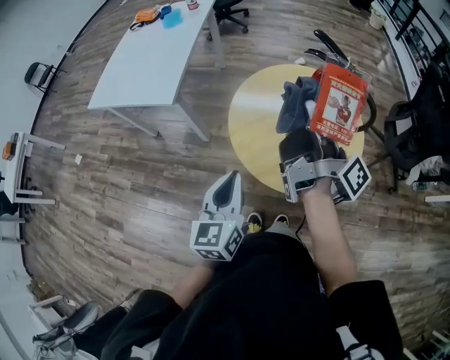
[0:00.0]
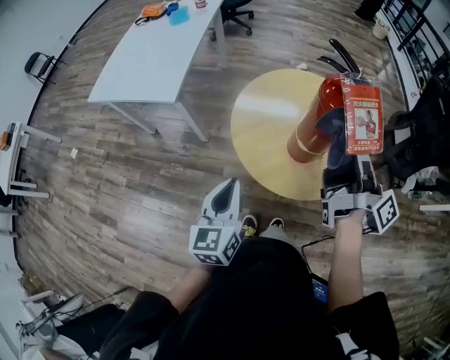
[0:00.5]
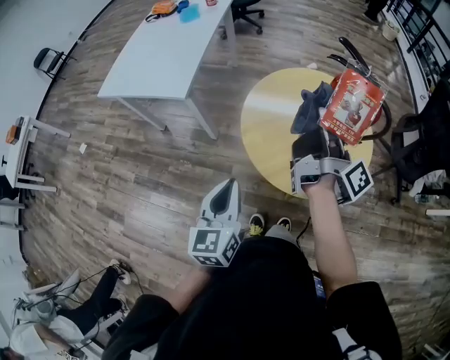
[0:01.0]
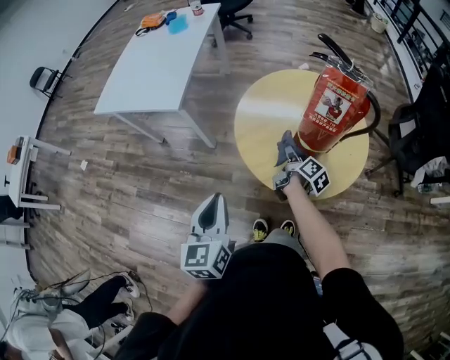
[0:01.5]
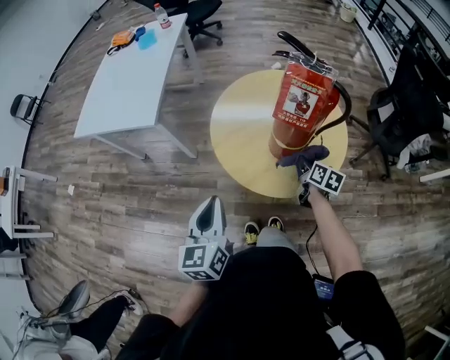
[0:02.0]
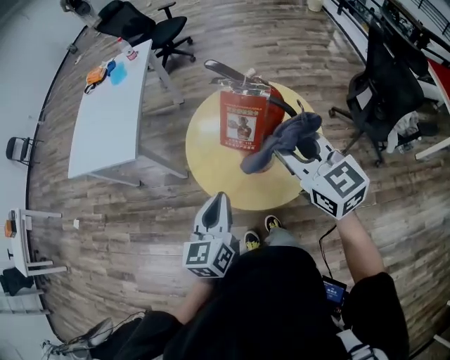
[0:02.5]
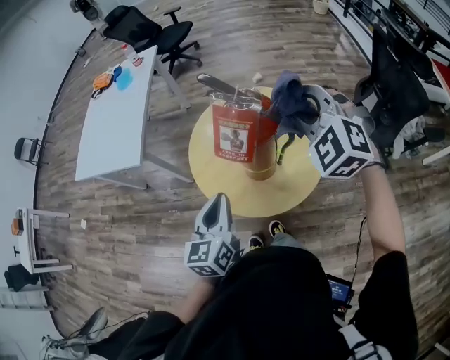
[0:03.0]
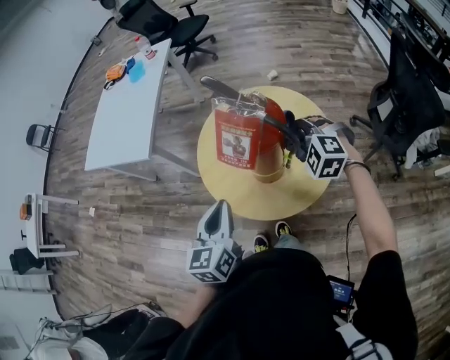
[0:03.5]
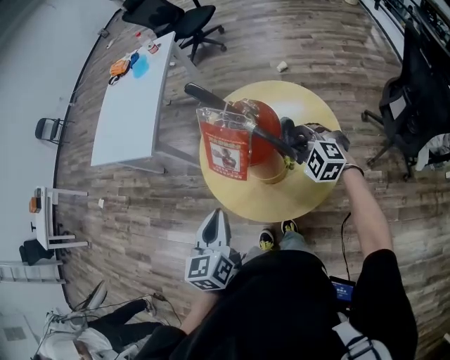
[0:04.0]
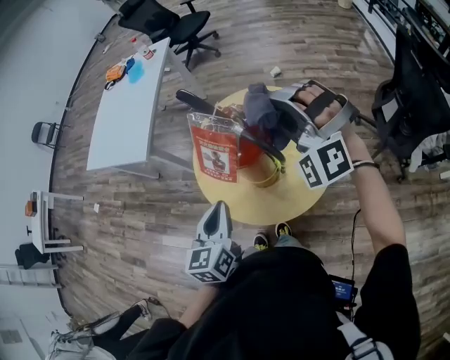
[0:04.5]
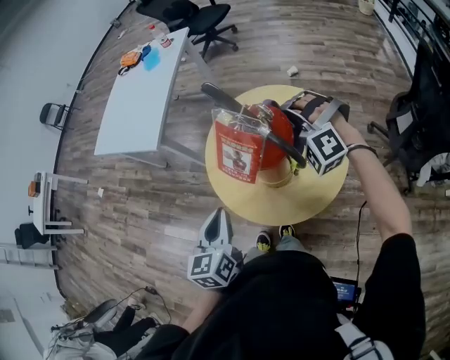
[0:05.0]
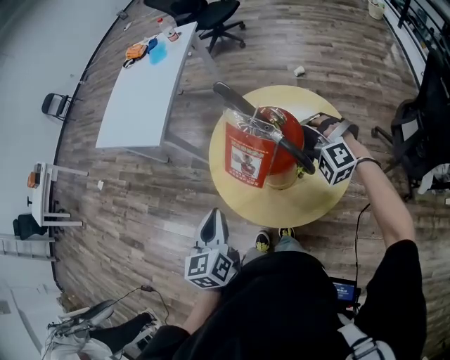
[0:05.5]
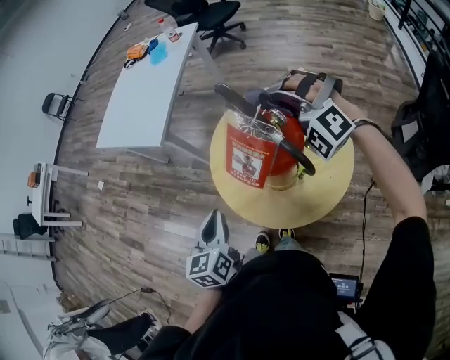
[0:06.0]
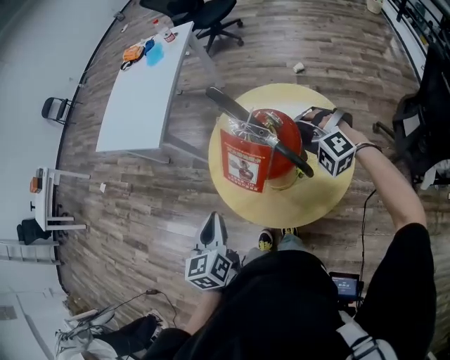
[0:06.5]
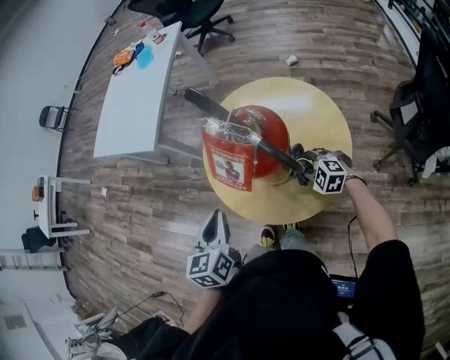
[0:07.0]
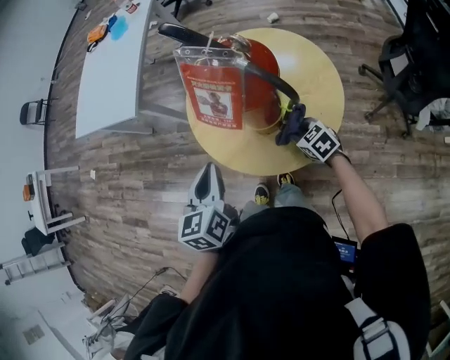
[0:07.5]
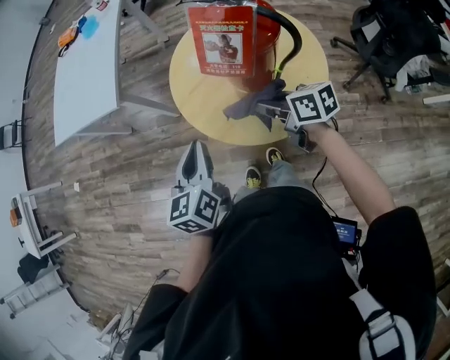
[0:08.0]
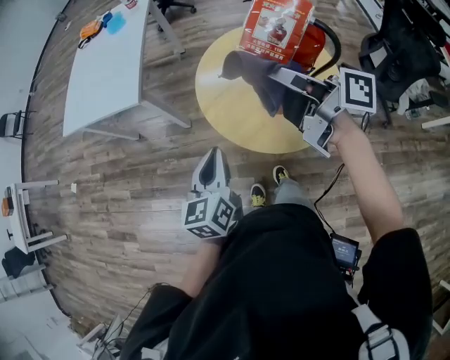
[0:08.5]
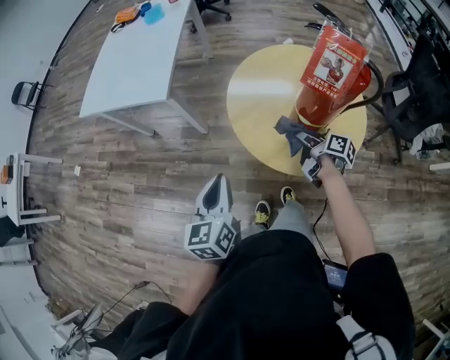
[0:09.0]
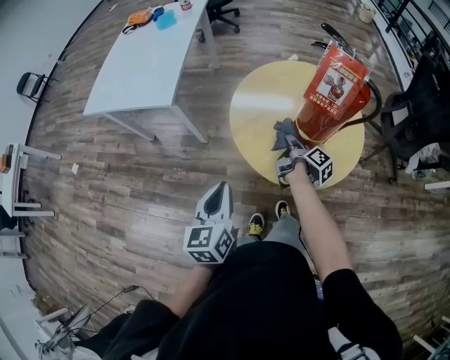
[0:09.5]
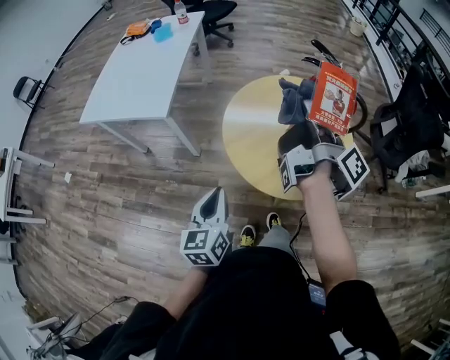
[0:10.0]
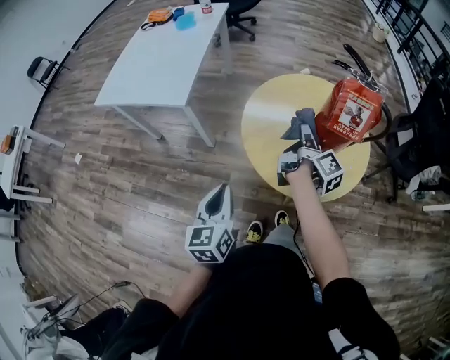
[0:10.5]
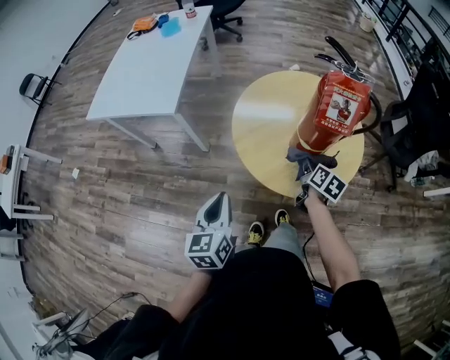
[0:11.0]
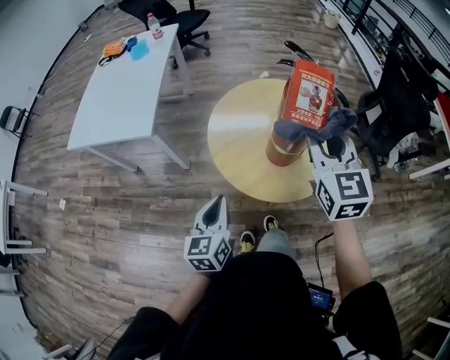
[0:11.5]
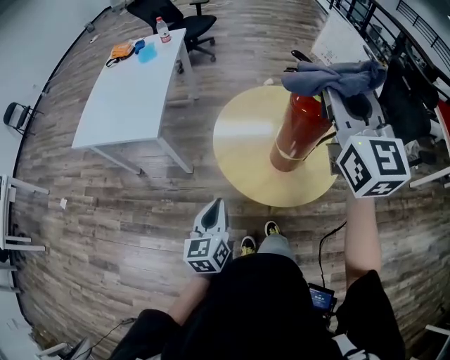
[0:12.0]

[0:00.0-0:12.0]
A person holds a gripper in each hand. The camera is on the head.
0:00.0 to 0:02.0: The right gripper is displaced downward by some 30 cm, and points its fingers roughly 50 degrees further downward.
0:02.0 to 0:04.0: The right gripper is displaced forward by about 10 cm, moves roughly 35 cm upward and comes back, and twists about 100 degrees counterclockwise, seen from behind, while the left gripper heads to the right, covering some 15 cm.
0:04.0 to 0:06.0: The right gripper swings up and down, roughly 20 cm each way, with 2 reversals, and rotates around the line of its fingers by approximately 40 degrees, counterclockwise from behind.
0:06.0 to 0:08.0: The right gripper shifts about 25 cm downward, backward and to the left, and rotates around the line of its fingers by some 130 degrees, clockwise from behind.
0:08.0 to 0:10.0: The left gripper shifts by some 10 cm; the right gripper goes up and down, roughly 30 cm each way, reversing 2 times, and points its fingers roughly 30 degrees further upward.
0:10.0 to 0:12.0: The right gripper heads upward, covering about 15 cm, and twists some 100 degrees counterclockwise, seen from behind.

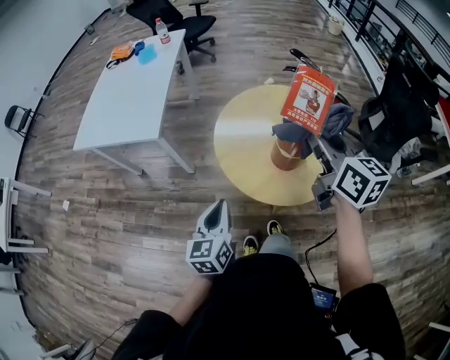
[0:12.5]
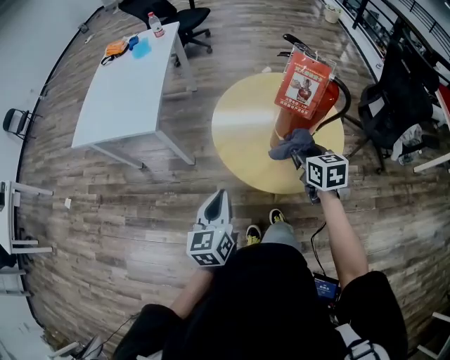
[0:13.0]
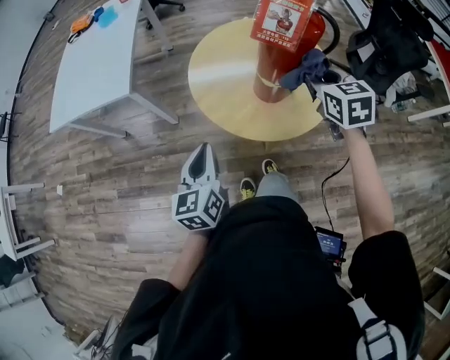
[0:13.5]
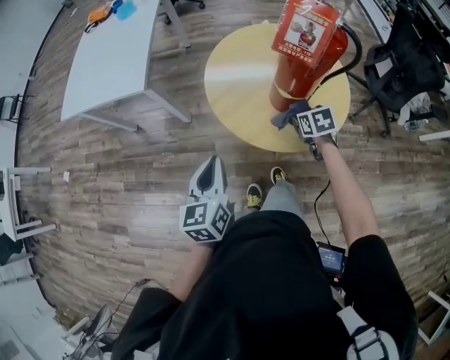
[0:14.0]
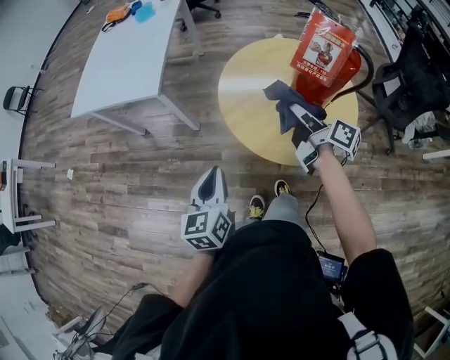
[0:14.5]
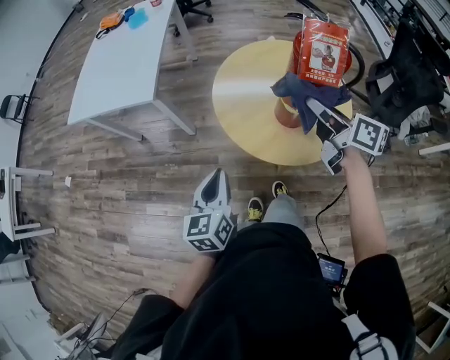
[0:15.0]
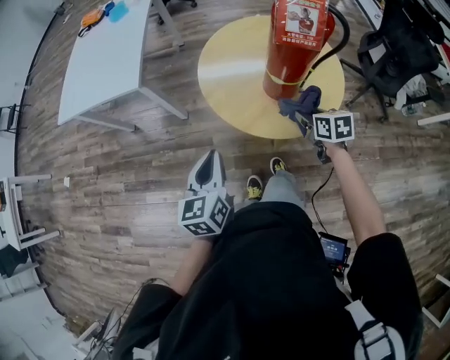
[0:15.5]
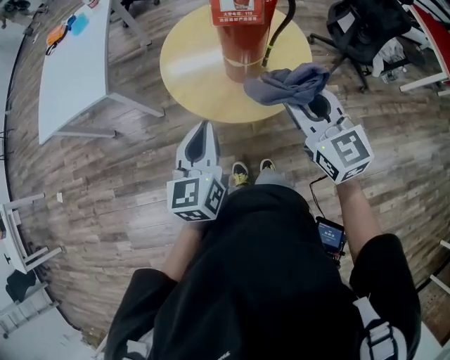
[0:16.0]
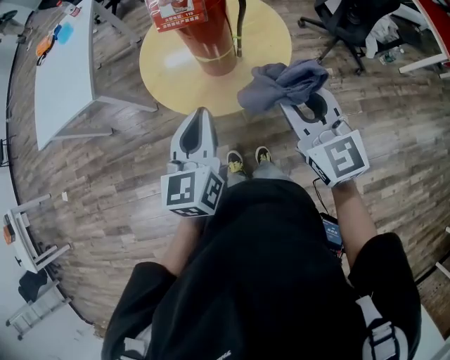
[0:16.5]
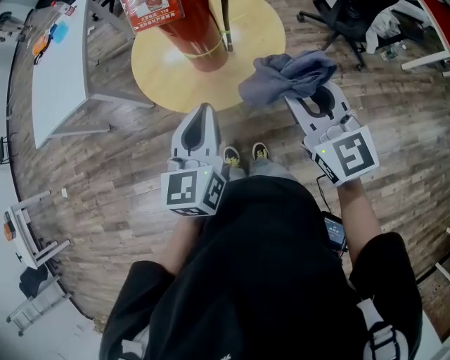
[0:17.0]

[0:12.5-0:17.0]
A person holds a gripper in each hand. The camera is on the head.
0:12.5 to 0:14.5: The right gripper moves up and down over some 35 cm, changing direction 3 times, and rolls clockwise, seen from behind, by some 50 degrees.
0:14.5 to 0:17.0: The left gripper travels to the right by approximately 25 cm, and rotates some 20 degrees. Meanwhile the right gripper swings up and down, roughly 25 cm each way, with 2 reversals, and twists approximately 70 degrees counterclockwise, seen from behind.

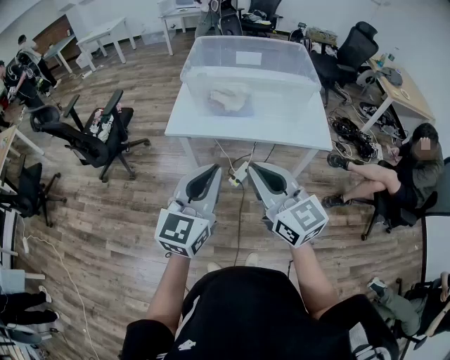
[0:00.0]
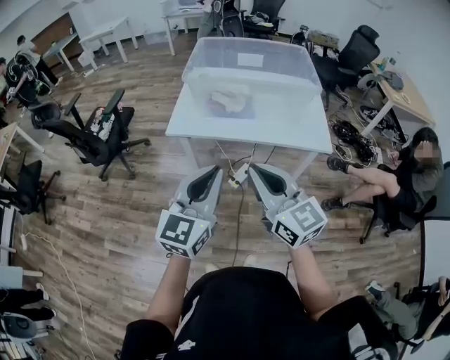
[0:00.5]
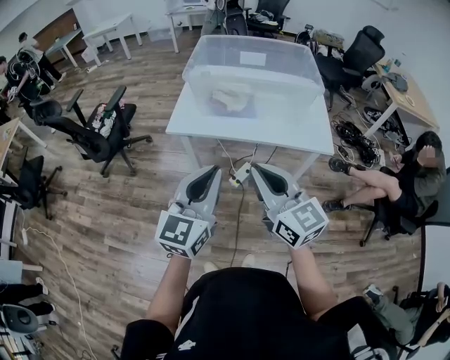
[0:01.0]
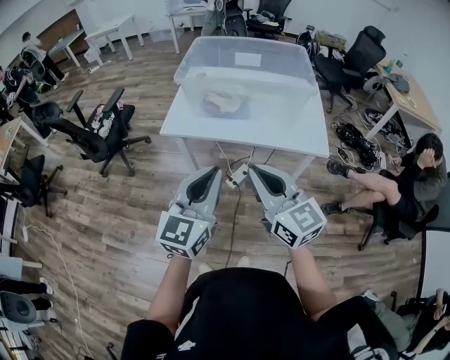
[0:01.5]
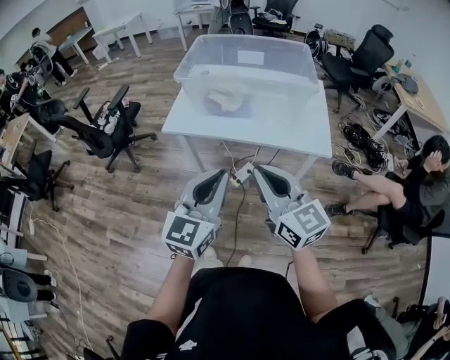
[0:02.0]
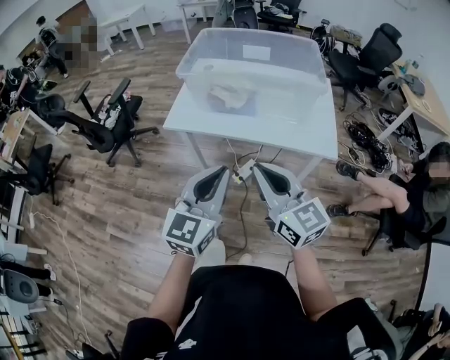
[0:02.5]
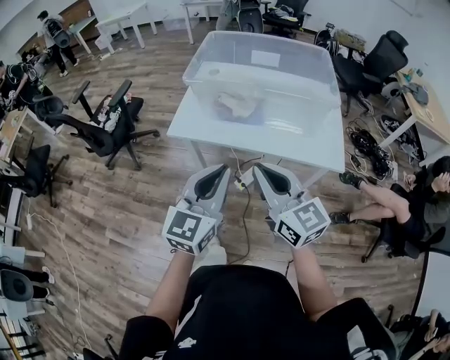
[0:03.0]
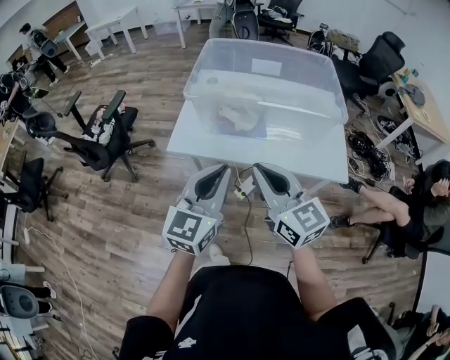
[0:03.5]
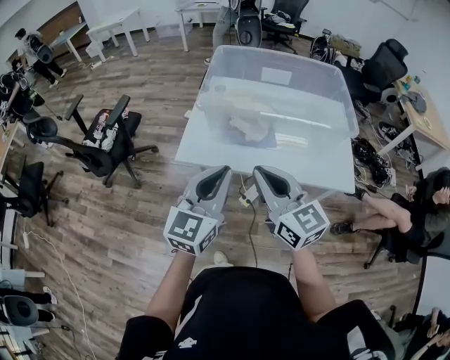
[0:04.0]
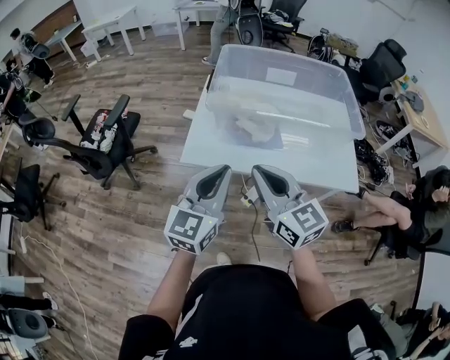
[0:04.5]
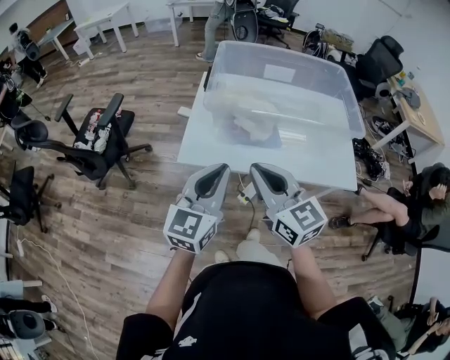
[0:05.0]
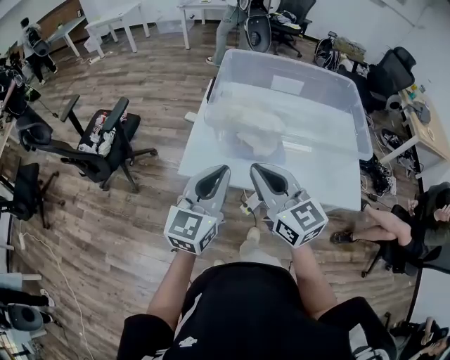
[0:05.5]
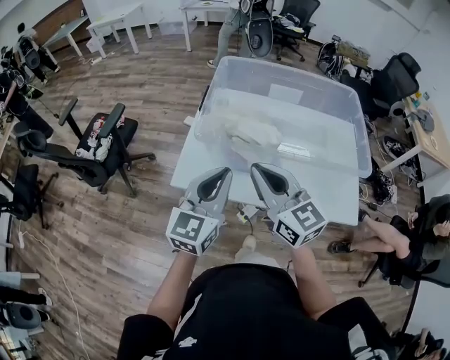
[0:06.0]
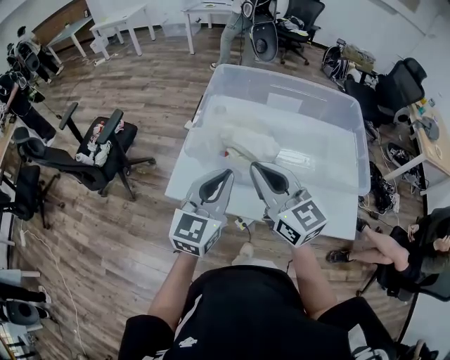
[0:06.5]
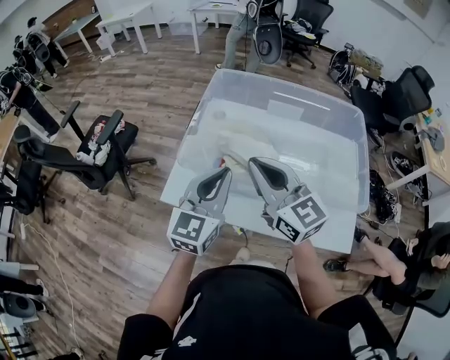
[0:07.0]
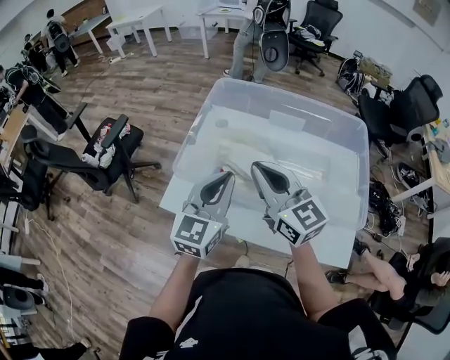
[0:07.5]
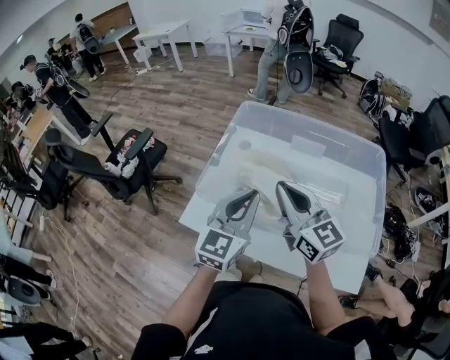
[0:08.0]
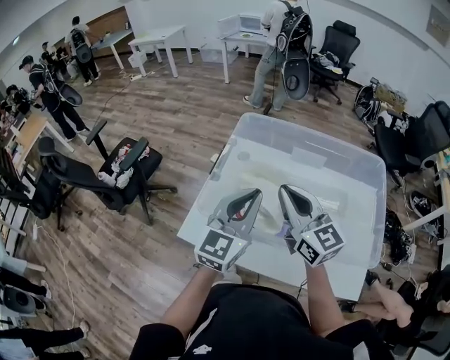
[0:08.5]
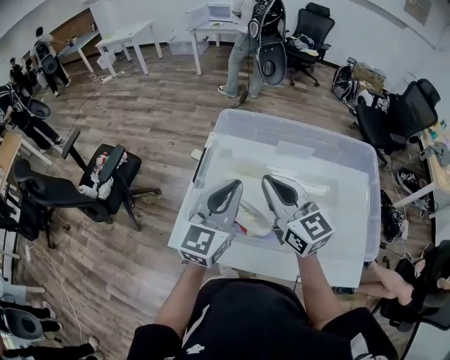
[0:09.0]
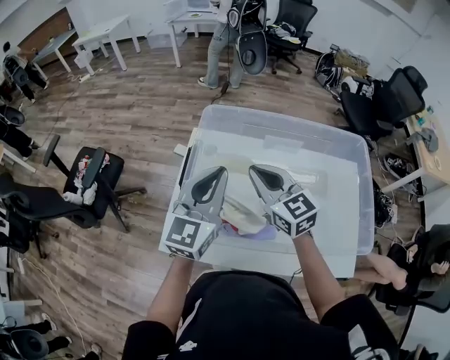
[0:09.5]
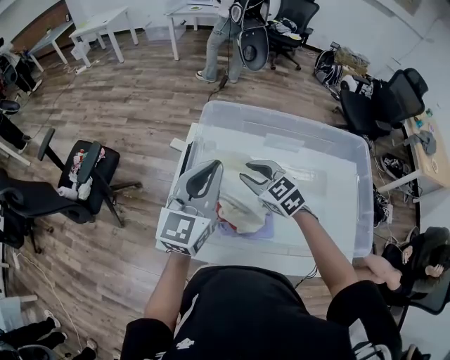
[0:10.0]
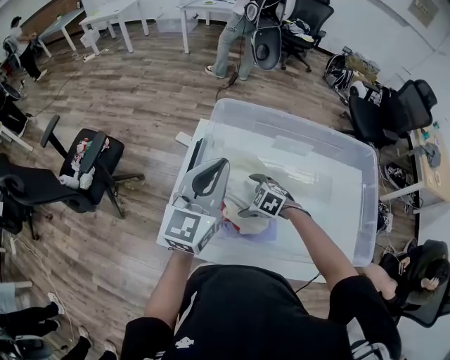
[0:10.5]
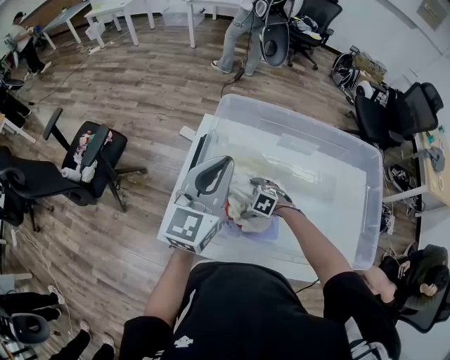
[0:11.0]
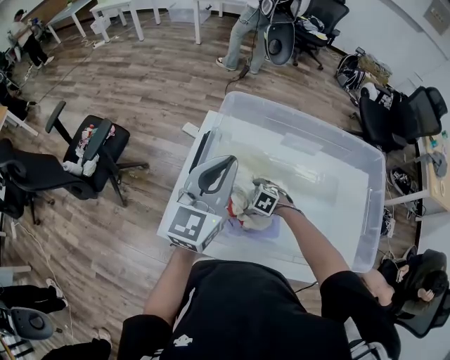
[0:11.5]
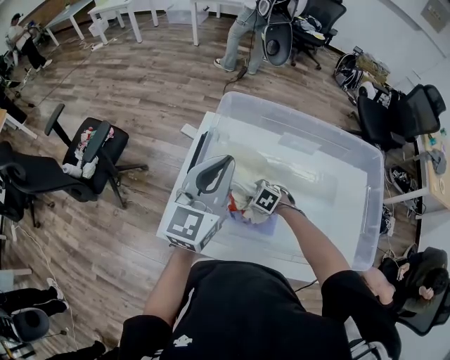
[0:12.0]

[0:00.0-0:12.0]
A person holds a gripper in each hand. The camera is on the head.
0:00.0 to 0:02.0: Both grippers travel together to the right, approximately 10 cm.
0:02.0 to 0:04.0: Both grippers move forward and to the left, about 25 cm.
0:04.0 to 0:06.0: Both grippers move forward, roughly 15 cm.
0:06.0 to 0:08.0: Both grippers move forward and to the right, about 15 cm.
0:08.0 to 0:10.0: The right gripper shifts roughly 25 cm forward and downward, and tips its fingers downward by about 40 degrees. Meanwhile the left gripper moves forward, about 15 cm.
0:10.0 to 0:12.0: The right gripper heads downward, covering about 25 cm, tilts its fingers about 40 degrees downward, and opens, then closes again.
